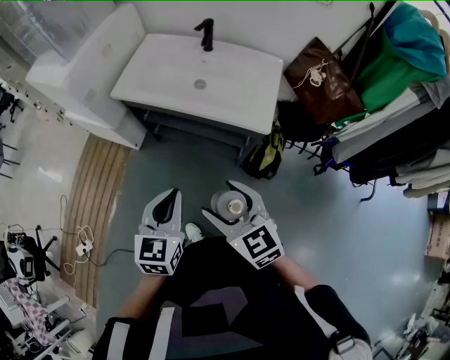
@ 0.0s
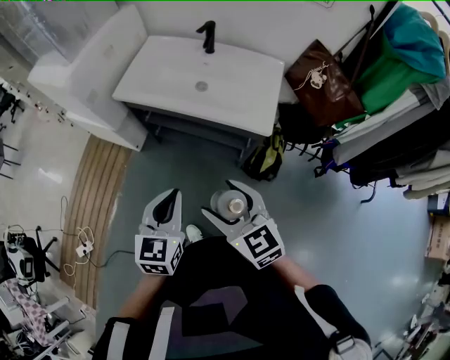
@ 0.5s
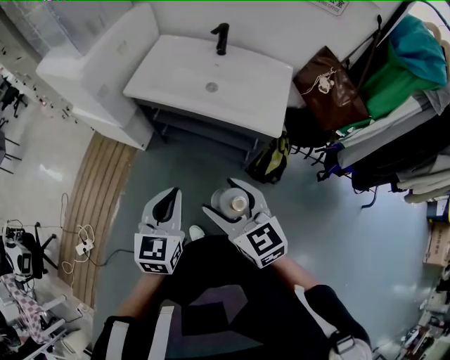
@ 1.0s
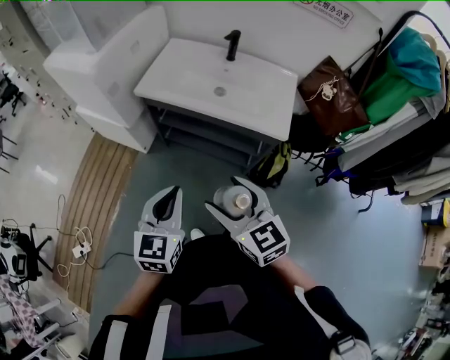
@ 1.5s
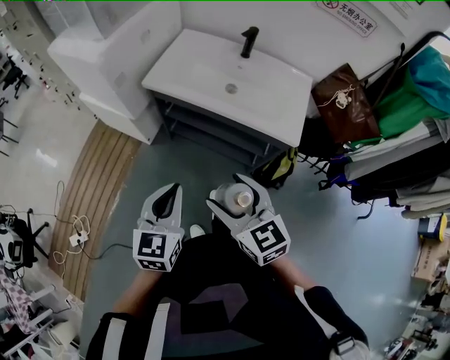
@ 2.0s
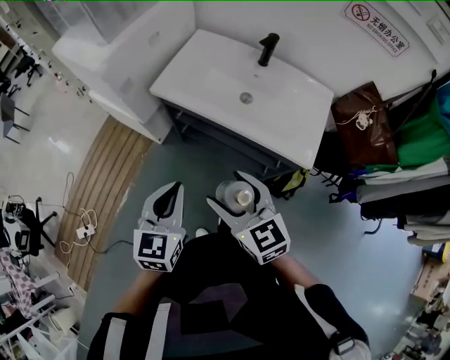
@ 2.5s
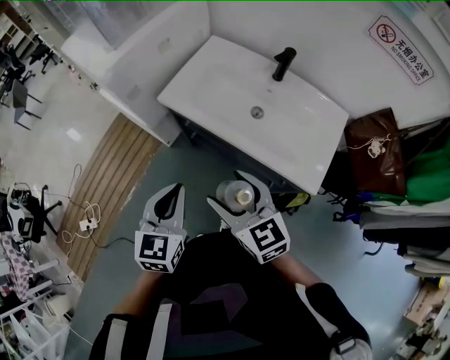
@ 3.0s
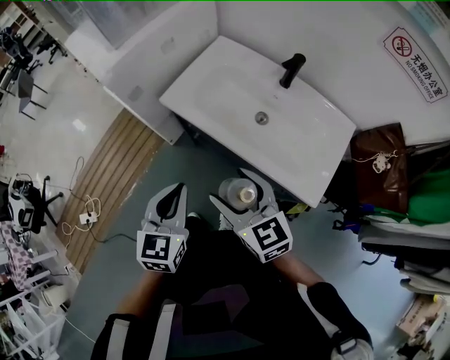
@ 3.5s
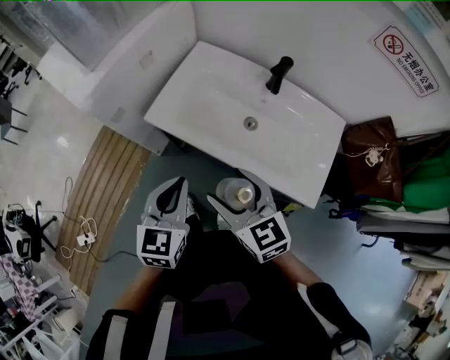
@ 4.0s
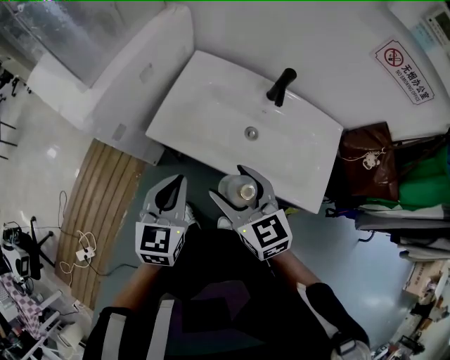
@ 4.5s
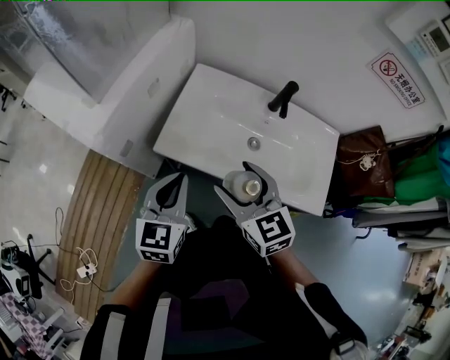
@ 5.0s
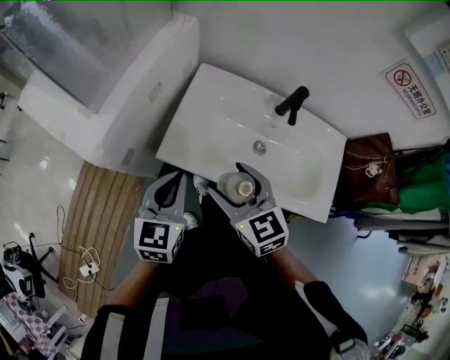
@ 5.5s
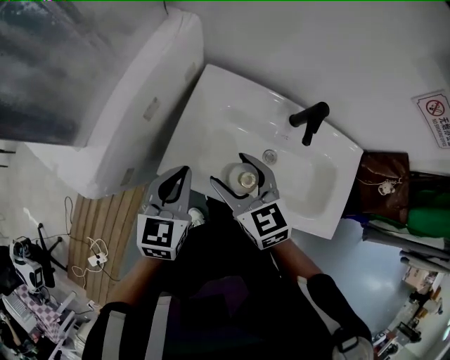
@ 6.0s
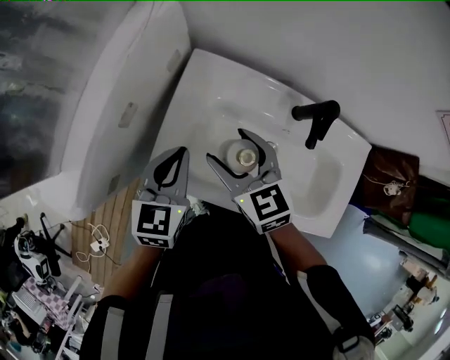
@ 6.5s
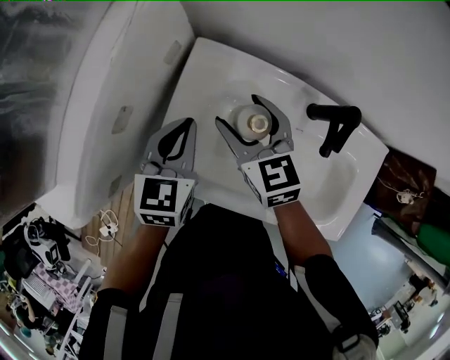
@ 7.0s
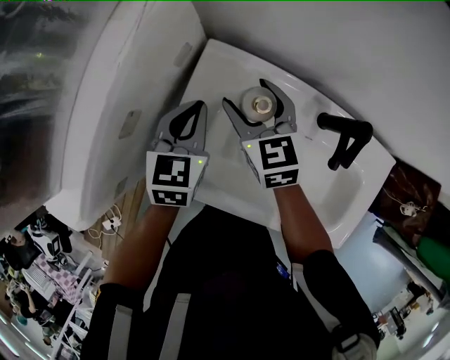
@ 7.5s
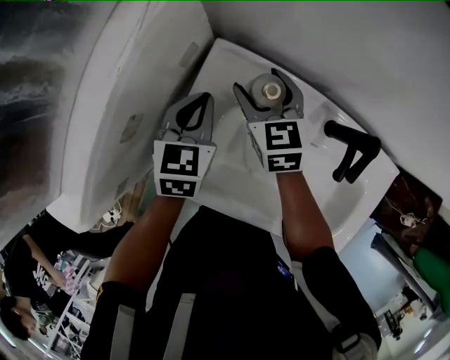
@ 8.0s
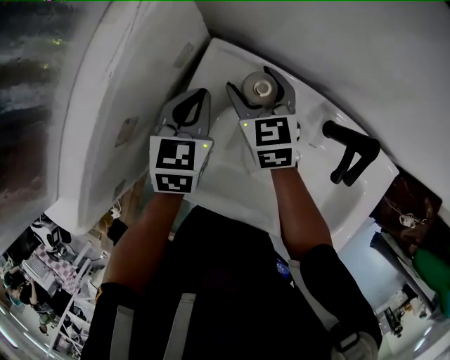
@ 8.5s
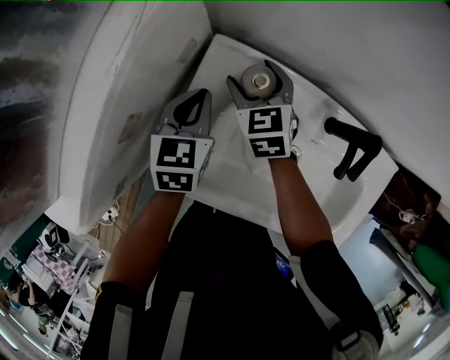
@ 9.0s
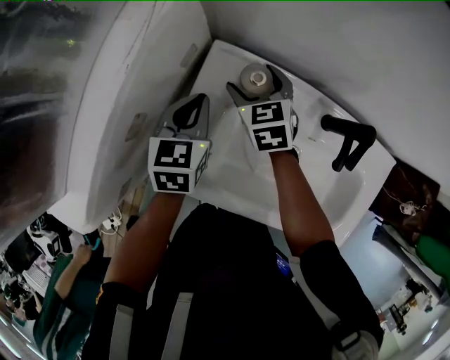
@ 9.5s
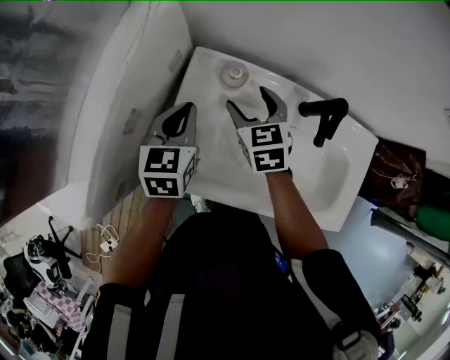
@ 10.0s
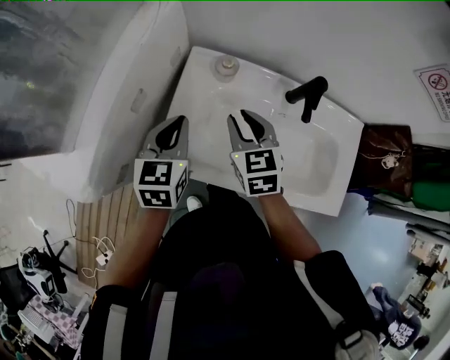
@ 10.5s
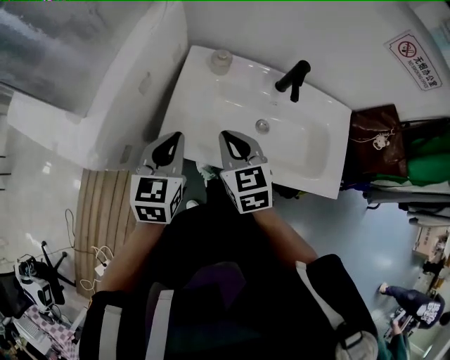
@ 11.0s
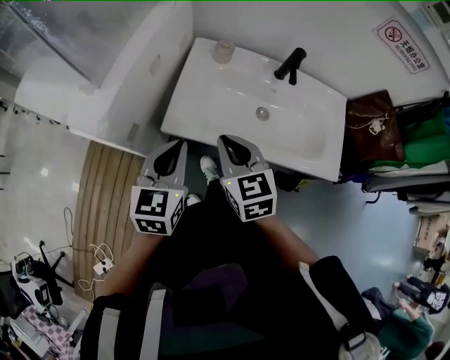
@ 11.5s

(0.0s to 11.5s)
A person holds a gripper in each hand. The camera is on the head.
0.0s - 2.0s: Both grippers travel together to the left, approximately 10 cm.
2.0s - 4.0s: Both grippers travel together forward, roughly 25 cm.
4.0s - 6.0s: The two grippers go approximately 25 cm forward.
6.0s - 7.5s: Both grippers travel together forward and downward, approximately 20 cm.
7.5s - 9.5s: The right gripper moves downward, approximately 5 cm.
9.5s - 11.5s: The two grippers go about 35 cm backward and upward. The right gripper closes up.

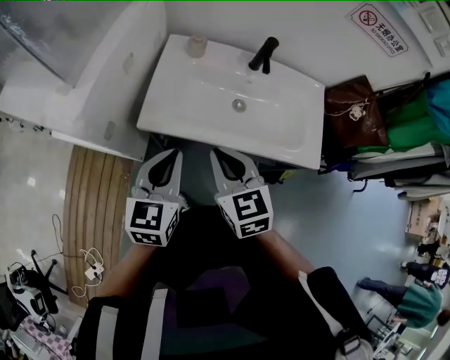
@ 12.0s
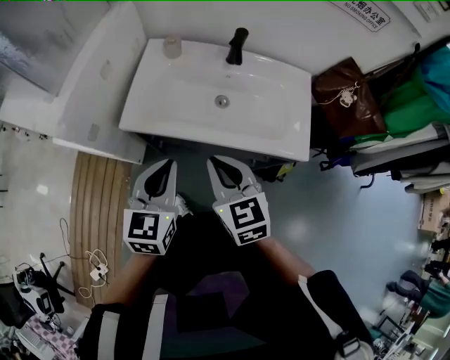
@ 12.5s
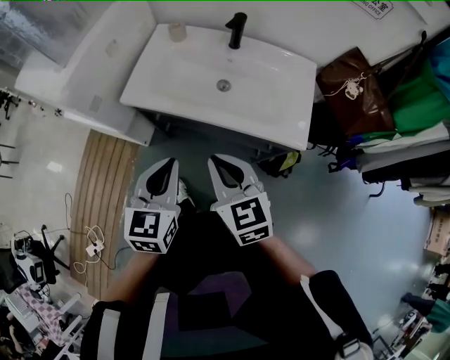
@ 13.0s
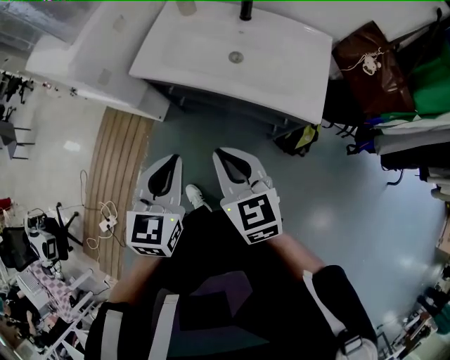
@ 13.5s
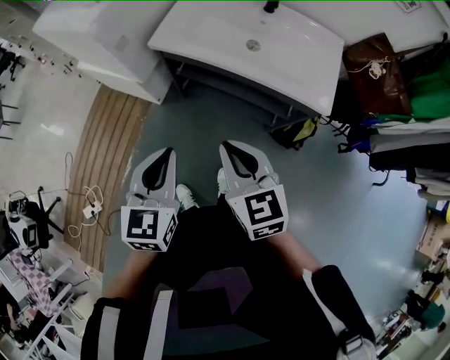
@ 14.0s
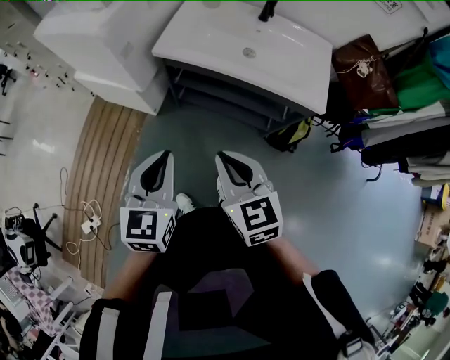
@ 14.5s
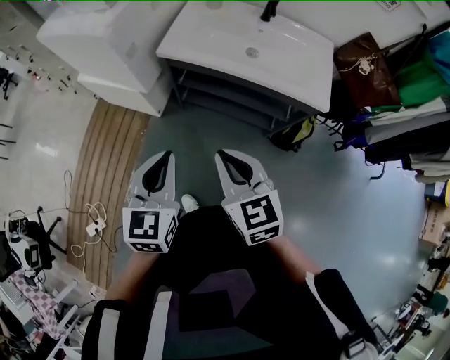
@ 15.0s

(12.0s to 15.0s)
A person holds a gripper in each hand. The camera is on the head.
12.0s - 13.5s: Both grippers travel together backward and to the right, roughly 20 cm.
13.5s - 15.0s: The left gripper heads to the left, covering some 15 cm. Meanwhile the right gripper moves to the left and backward, about 15 cm.

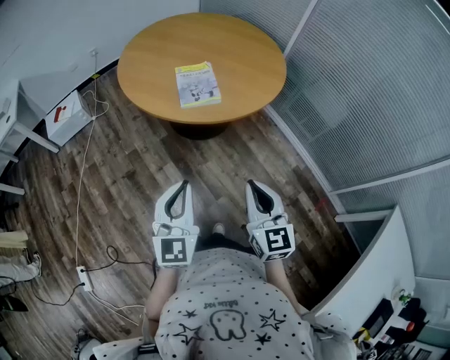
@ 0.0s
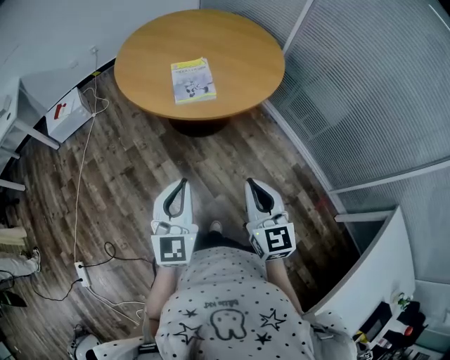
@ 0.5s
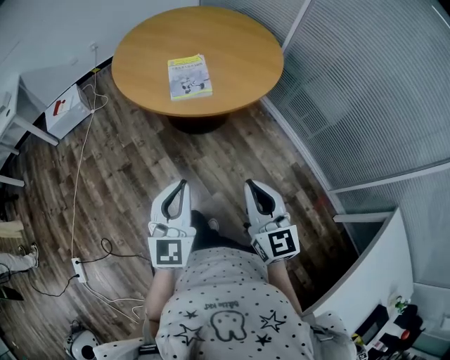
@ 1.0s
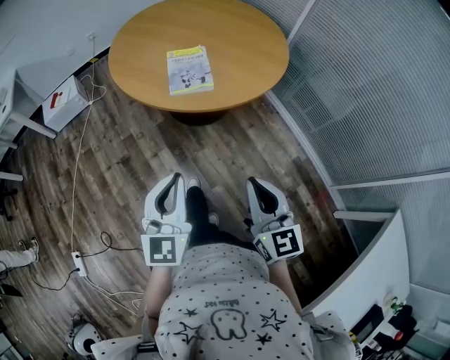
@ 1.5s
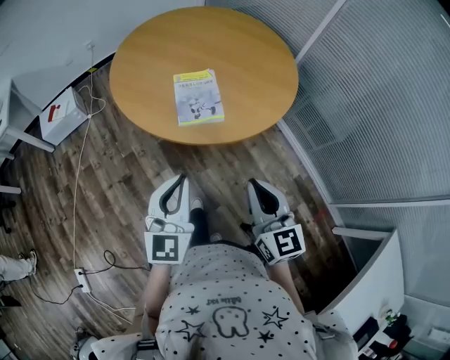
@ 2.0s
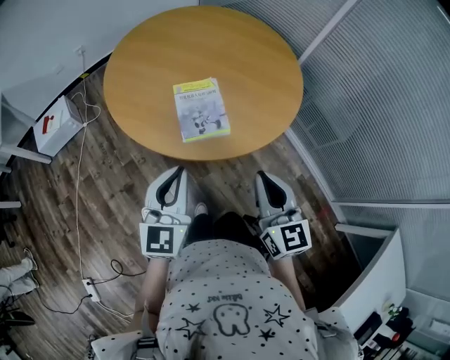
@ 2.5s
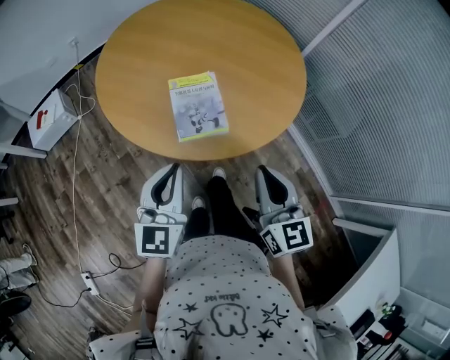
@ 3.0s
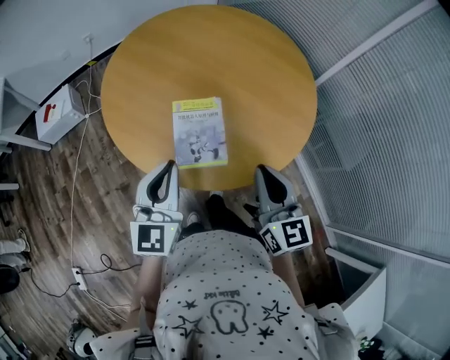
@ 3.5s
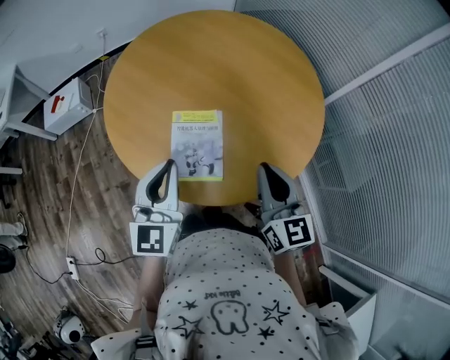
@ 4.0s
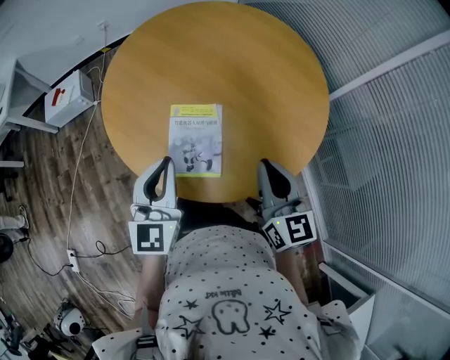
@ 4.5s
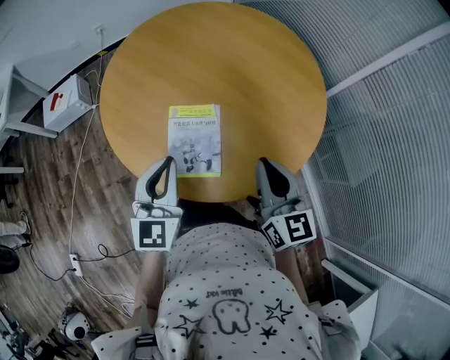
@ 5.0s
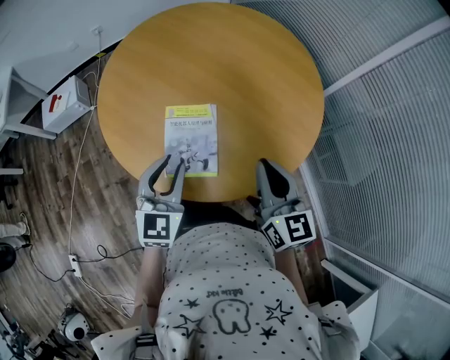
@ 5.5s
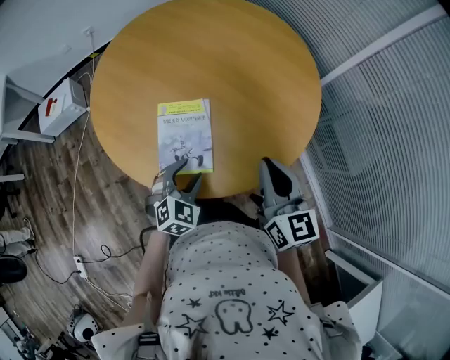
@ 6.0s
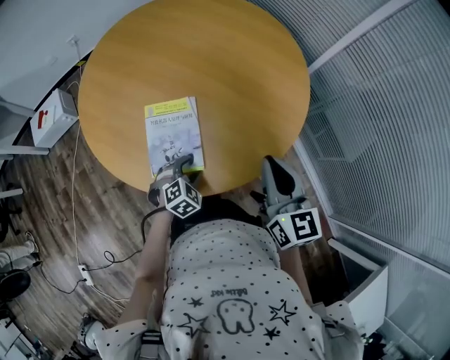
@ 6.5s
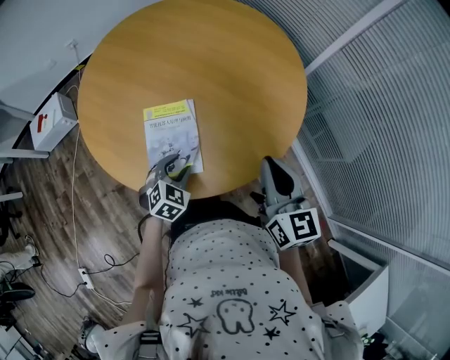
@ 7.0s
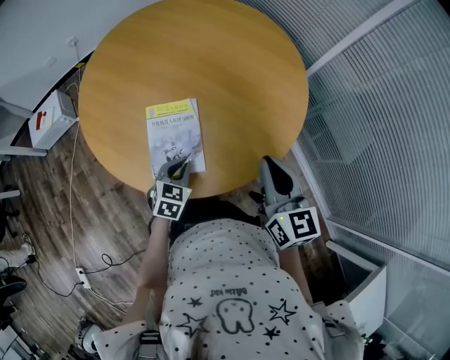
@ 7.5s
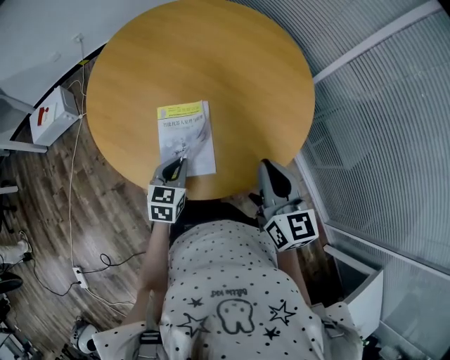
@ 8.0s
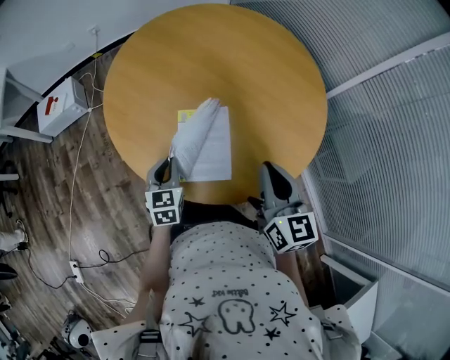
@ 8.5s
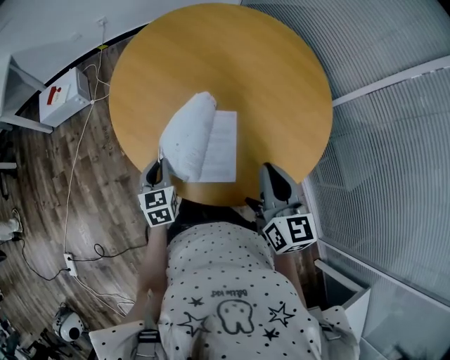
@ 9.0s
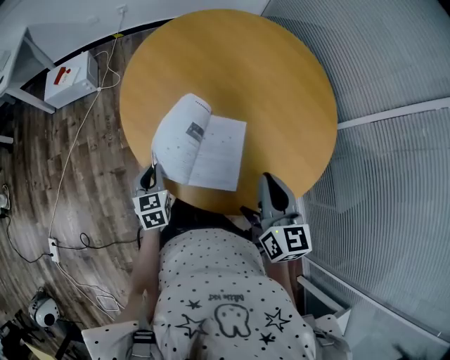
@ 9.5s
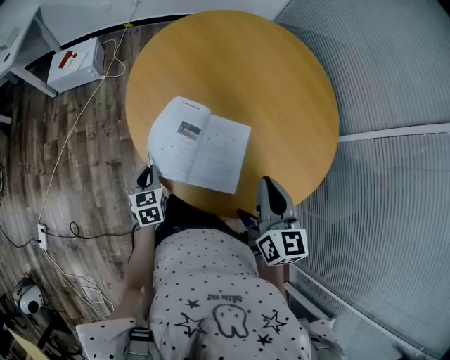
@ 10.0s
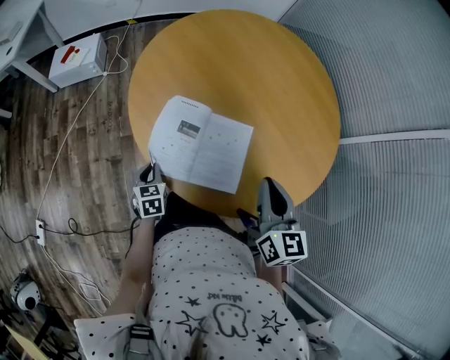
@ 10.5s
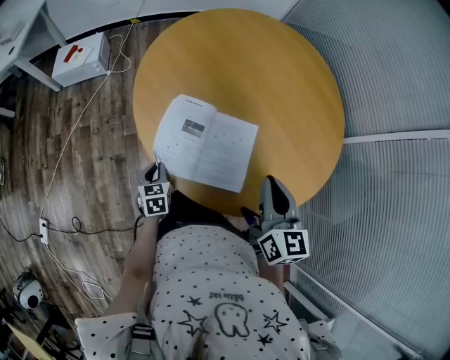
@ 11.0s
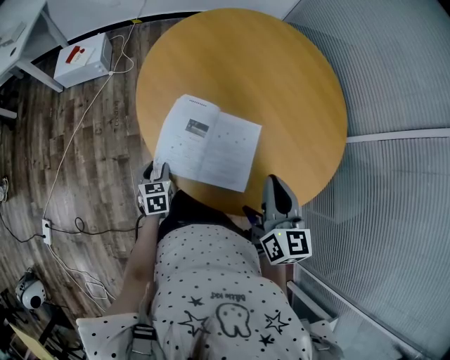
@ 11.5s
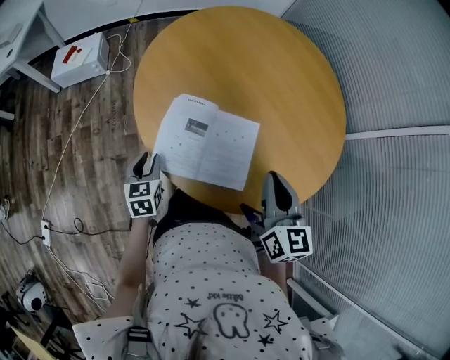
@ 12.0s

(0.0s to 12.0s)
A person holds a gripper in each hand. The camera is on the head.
0.0s - 2.0s: Both grippers move forward, approximately 15 cm.
2.0s - 4.0s: Both grippers move forward, approximately 30 cm.
4.0s - 6.0s: The right gripper ends up approximately 5 cm from where it was. Meanwhile the left gripper travels downward and to the right by some 20 cm, tilts its fingers about 40 degrees downward, and opens.
6.0s - 8.0s: The left gripper shifts about 5 cm to the left, goes downward and returns, approximately 10 cm each way, swivels some 30 degrees, and closes.
8.0s - 10.0s: The left gripper moves approximately 20 cm, and swivels roughly 40 degrees. The right gripper shifts by about 10 cm.
10.0s - 12.0s: The left gripper goes downward and returns, some 5 cm each way, and opens its fingers.
